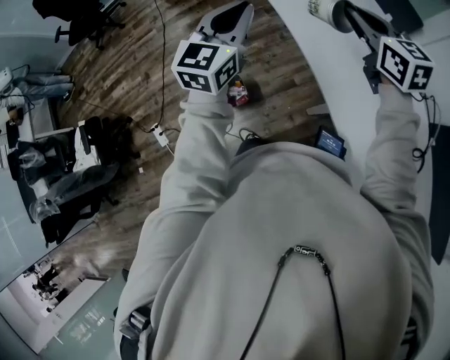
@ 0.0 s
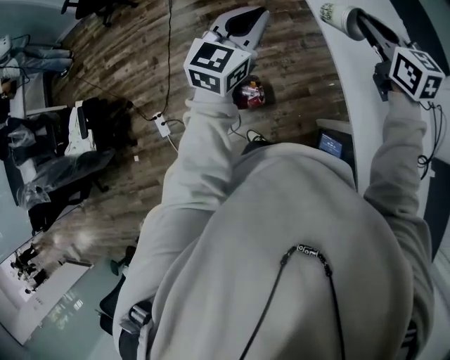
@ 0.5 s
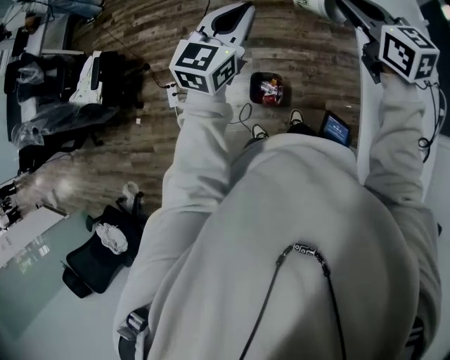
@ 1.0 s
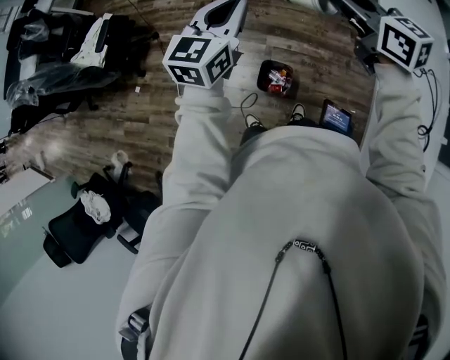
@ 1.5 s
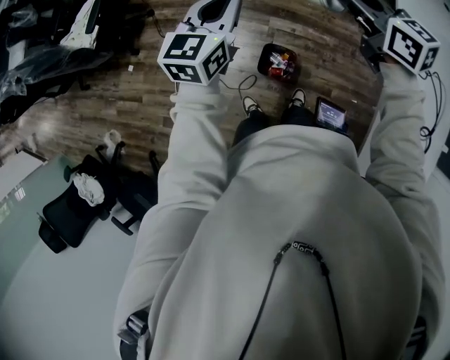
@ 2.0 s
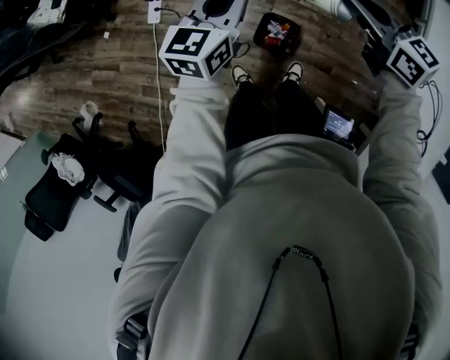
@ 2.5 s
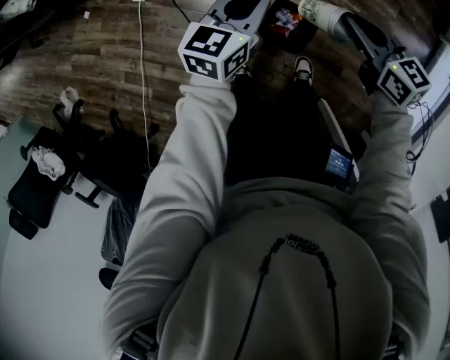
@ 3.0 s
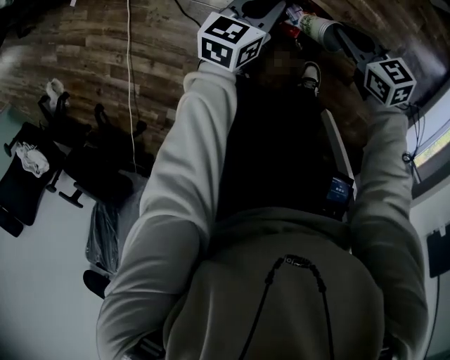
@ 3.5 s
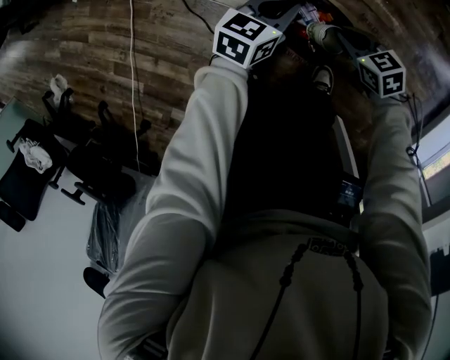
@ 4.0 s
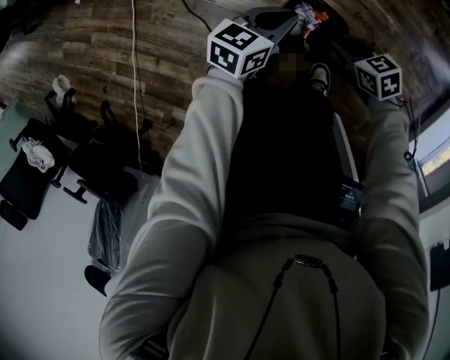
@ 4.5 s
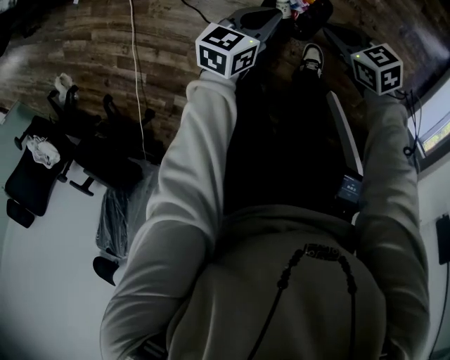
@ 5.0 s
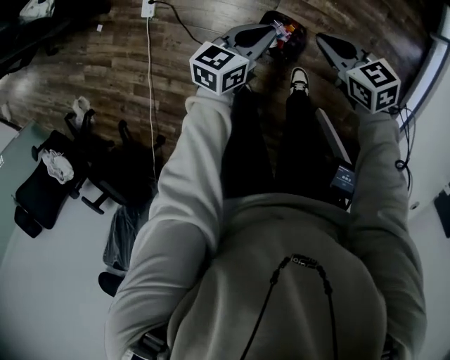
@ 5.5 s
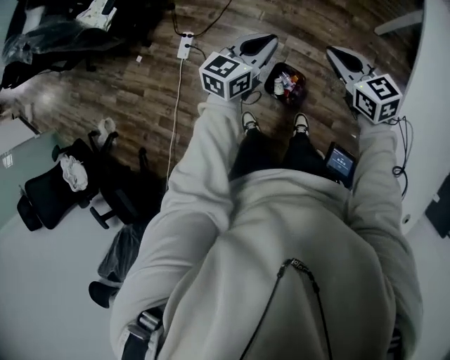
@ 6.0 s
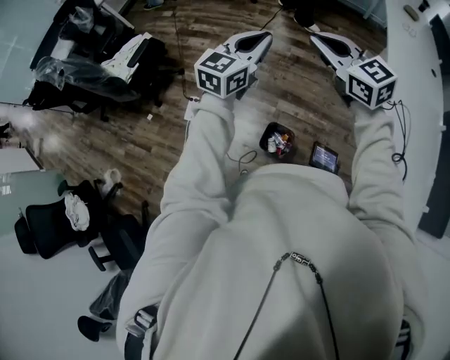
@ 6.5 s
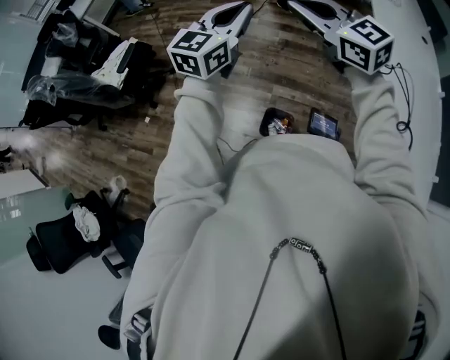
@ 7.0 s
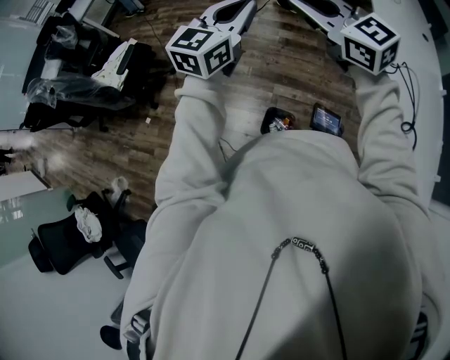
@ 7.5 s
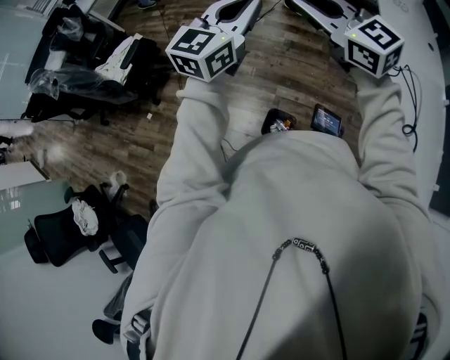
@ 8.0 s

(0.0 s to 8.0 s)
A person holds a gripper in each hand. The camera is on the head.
0.0 s - 2.0 s: The right gripper shifts by approximately 50 cm, and turns by about 50 degrees. The left gripper shifts by about 40 cm, and swivels approximately 40 degrees.
2.0 s - 4.0 s: The grippers both shift downward by roughly 70 cm. The left gripper rotates about 30 degrees, while the right gripper tips its fingers downward by roughly 30 degrees.
4.0 s - 6.0 s: Both grippers move upward, about 50 cm. The right gripper turns by about 30 degrees.
6.0 s - 8.0 s: The grippers both shift upward by some 30 cm. The right gripper changes its angle by approximately 30 degrees. The left gripper changes its angle by approximately 30 degrees.

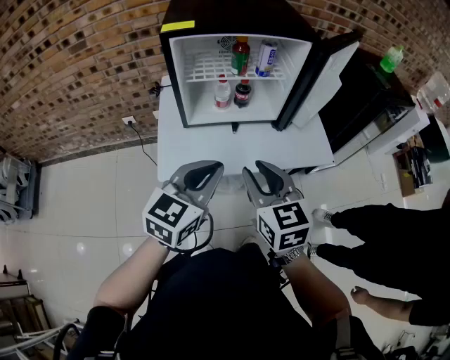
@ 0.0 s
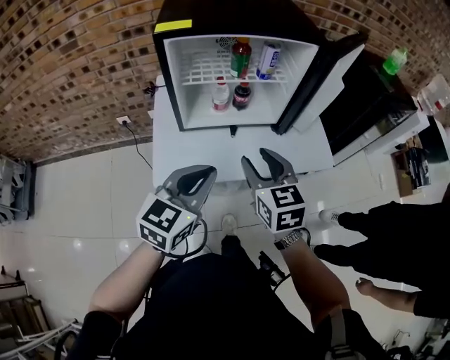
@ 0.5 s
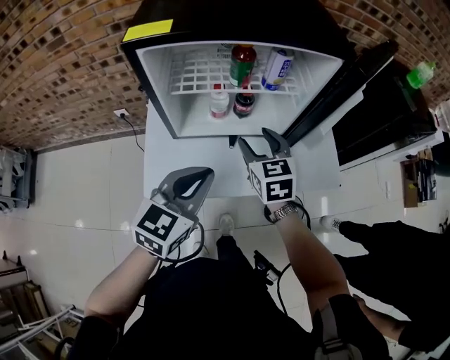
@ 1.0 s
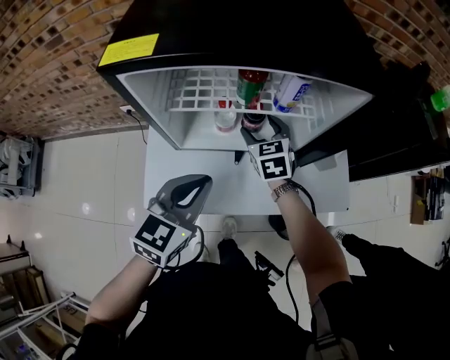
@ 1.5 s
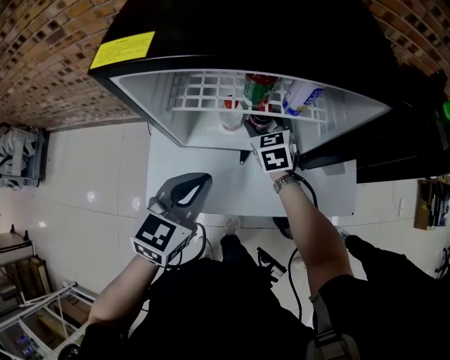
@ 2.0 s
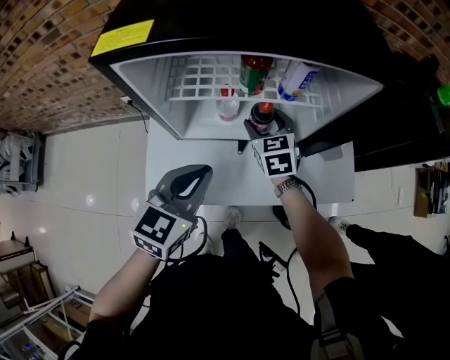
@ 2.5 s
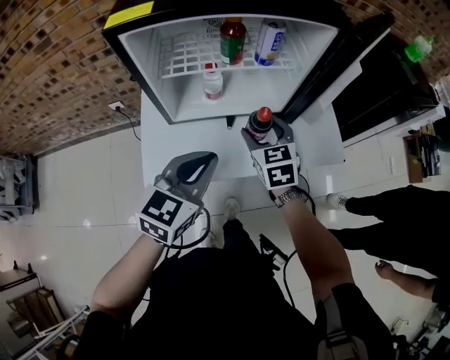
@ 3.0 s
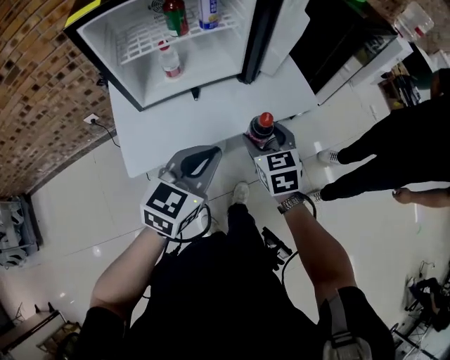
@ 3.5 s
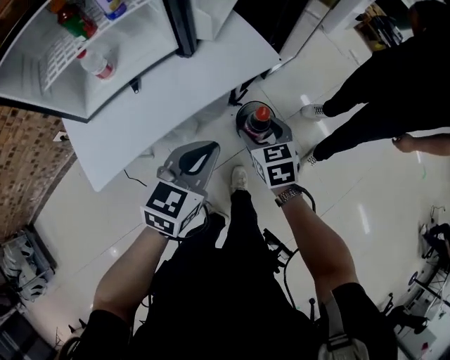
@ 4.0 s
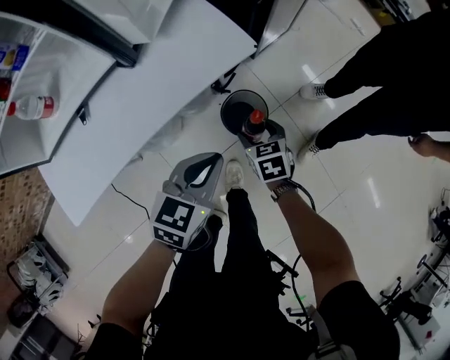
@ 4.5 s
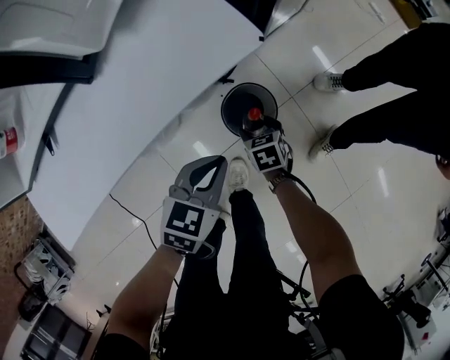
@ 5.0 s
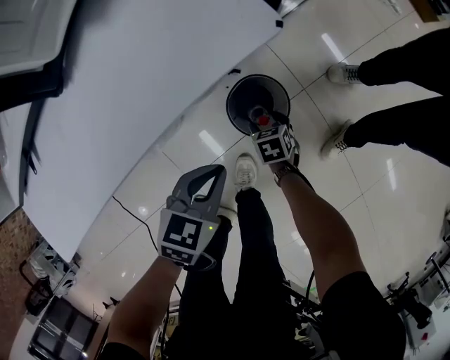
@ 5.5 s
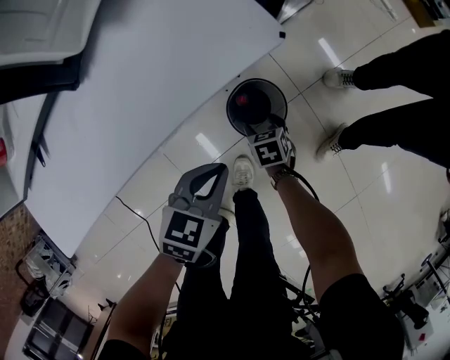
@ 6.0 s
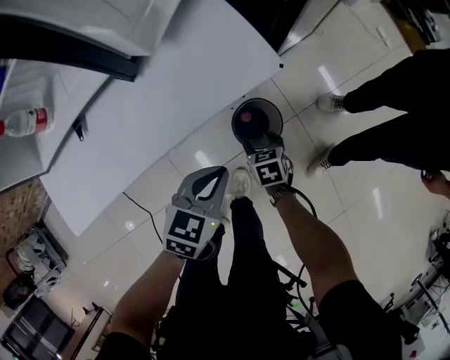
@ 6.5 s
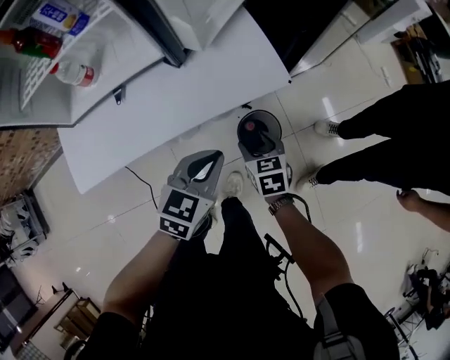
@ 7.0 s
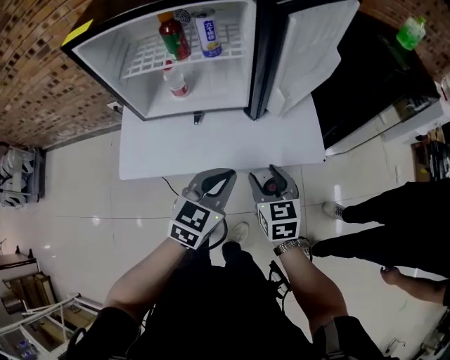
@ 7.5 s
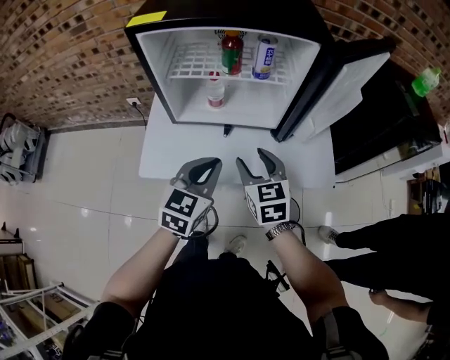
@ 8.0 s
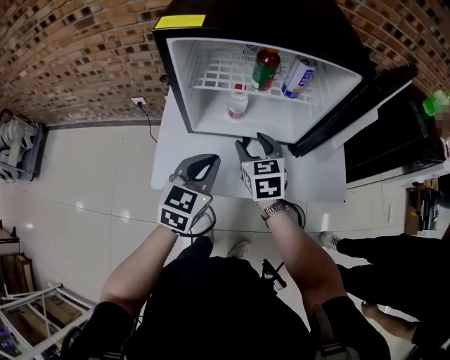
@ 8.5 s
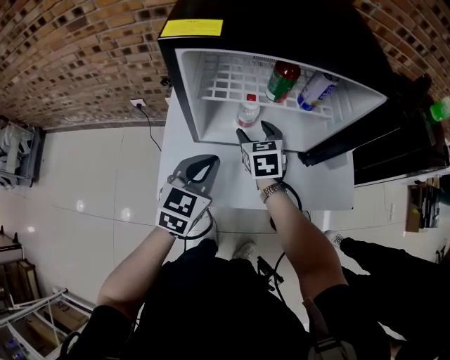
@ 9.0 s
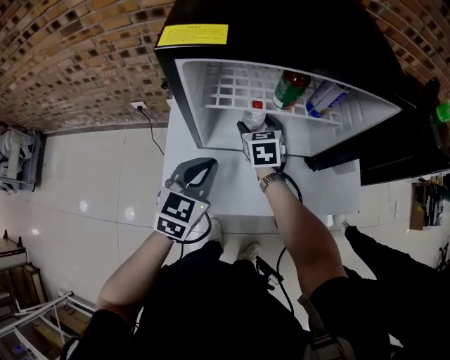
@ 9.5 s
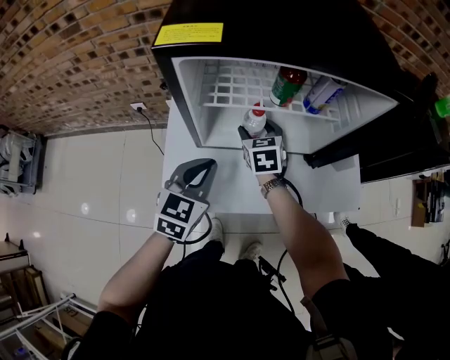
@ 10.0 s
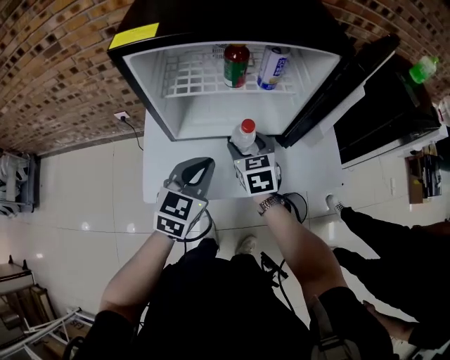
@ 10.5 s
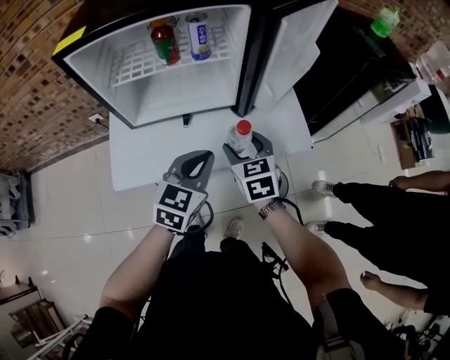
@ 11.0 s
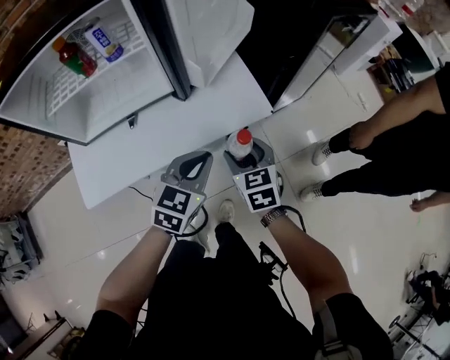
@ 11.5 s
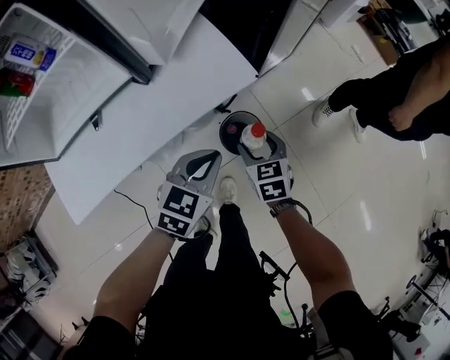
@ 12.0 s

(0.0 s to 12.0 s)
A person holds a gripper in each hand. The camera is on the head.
0.0 s - 2.0 s: The left gripper travels forward by roughly 20 cm. Meanwhile the right gripper travels forward and downward by approximately 40 cm, and opens up.
2.0 s - 4.0 s: The right gripper ends up some 50 cm from where it was, and swivels about 40 degrees; the left gripper changes place by approximately 30 cm, and swivels roughly 40 degrees.
4.0 s - 6.0 s: The right gripper is displaced downward by roughly 40 cm, and rotates about 30 degrees, while the left gripper moves downward and forward, roughly 30 cm, and swivels about 20 degrees.
6.0 s - 8.0 s: The right gripper moves upward, roughly 50 cm, and points its fingers some 40 degrees further upward. The left gripper moves upward, some 35 cm, and turns by some 50 degrees.
8.0 s - 10.0 s: The left gripper shifts about 20 cm to the left and forward, while the right gripper shifts some 25 cm forward and to the left.
10.0 s - 12.0 s: The two grippers travel together, approximately 50 cm. The right gripper rotates roughly 30 degrees. The left gripper changes its angle by roughly 40 degrees.

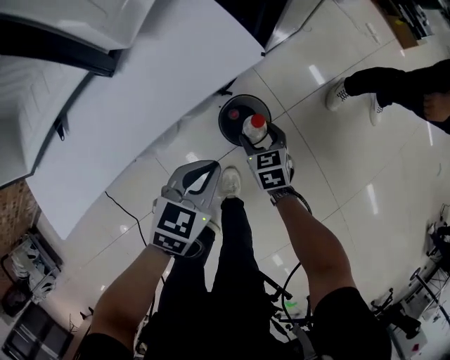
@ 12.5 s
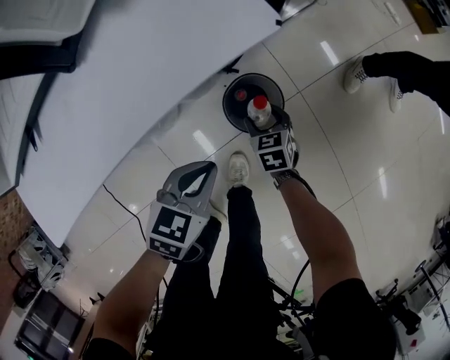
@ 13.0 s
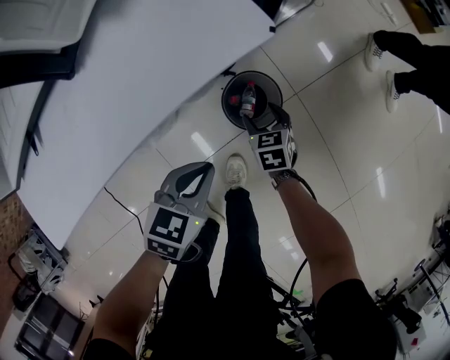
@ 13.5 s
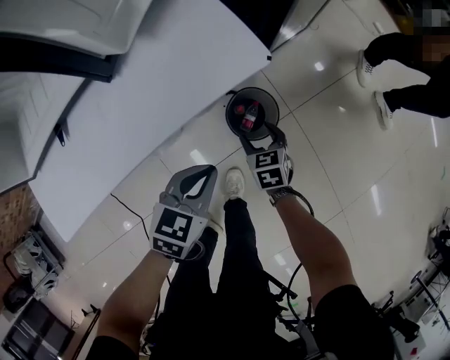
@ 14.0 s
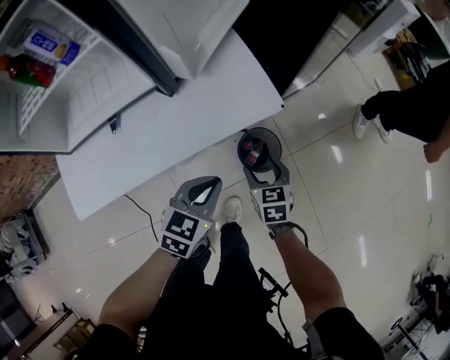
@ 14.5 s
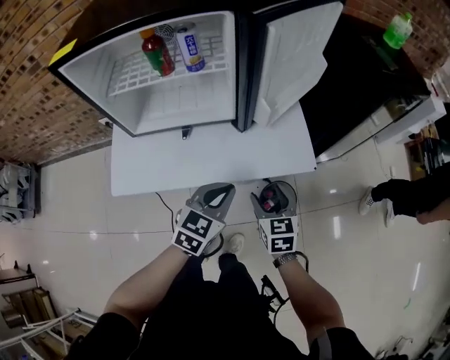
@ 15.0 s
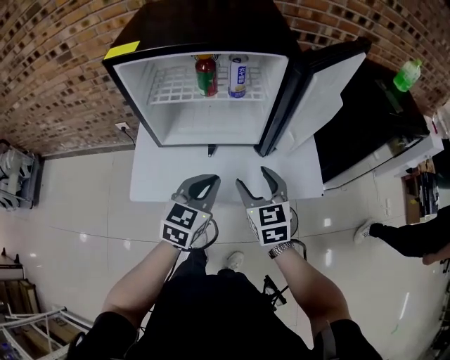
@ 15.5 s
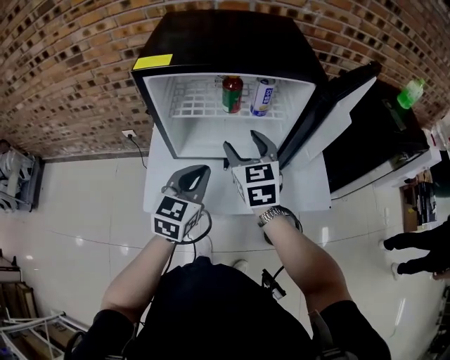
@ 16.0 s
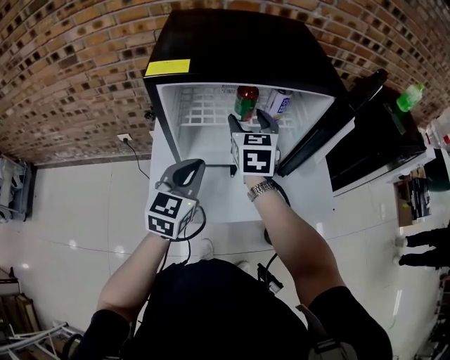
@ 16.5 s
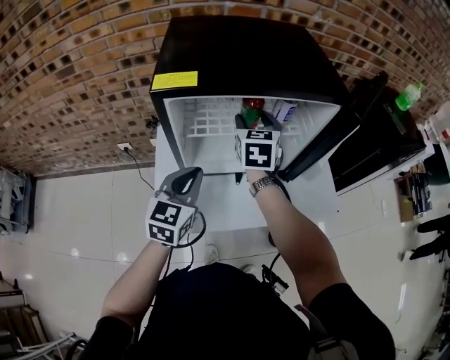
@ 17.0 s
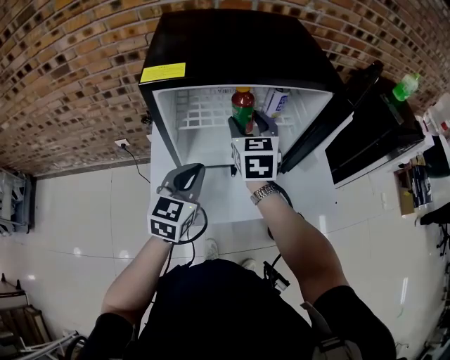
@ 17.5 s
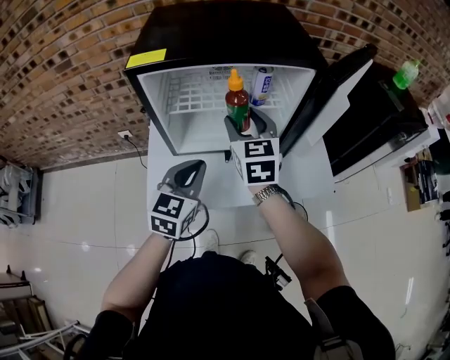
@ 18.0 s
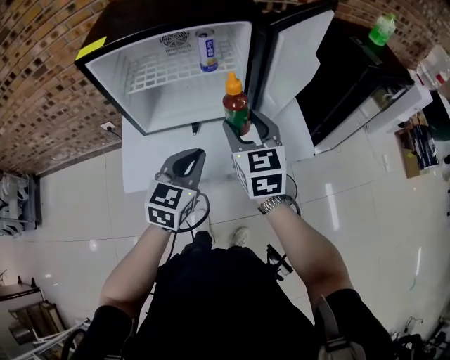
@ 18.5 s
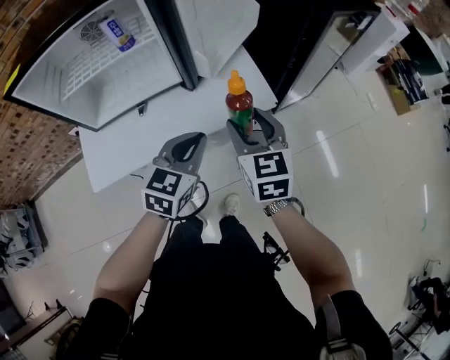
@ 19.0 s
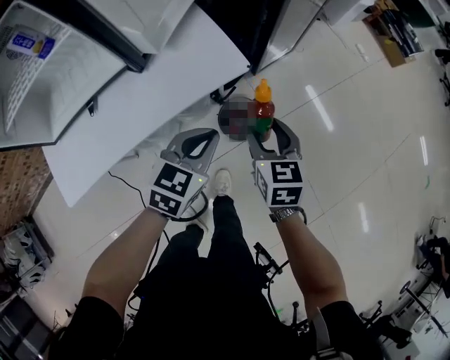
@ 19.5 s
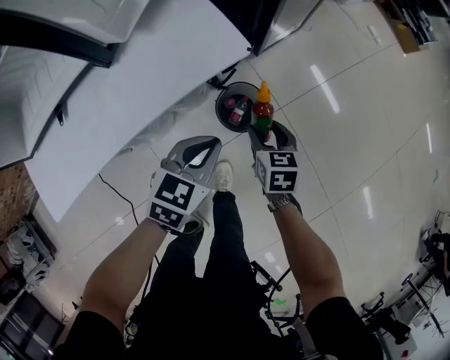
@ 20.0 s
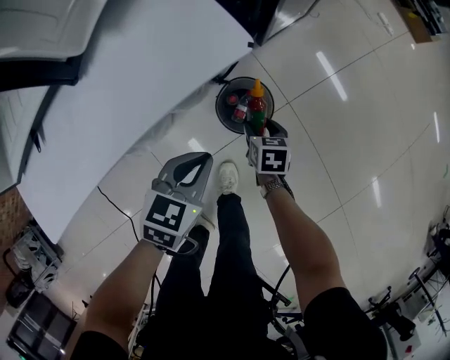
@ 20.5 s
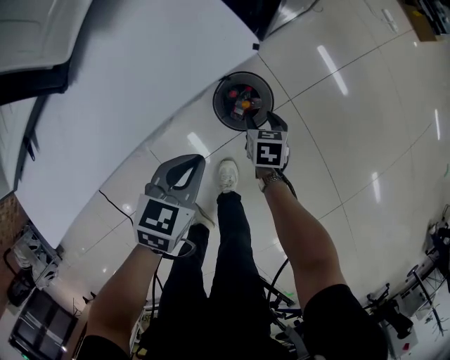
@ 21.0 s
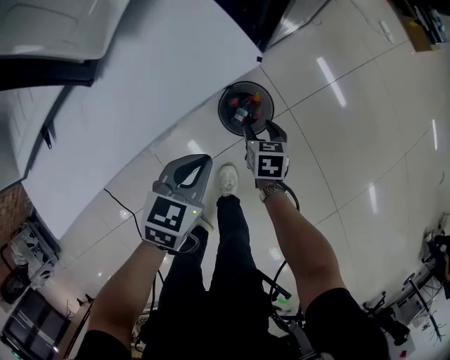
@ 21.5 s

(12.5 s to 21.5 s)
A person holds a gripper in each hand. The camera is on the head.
12.5 s - 14.5 s: The right gripper travels upward by some 10 cm. The left gripper goes roughly 10 cm upward.
14.5 s - 17.0 s: The pair of grippers is taken approximately 50 cm. The right gripper rotates roughly 30 degrees. The left gripper rotates some 40 degrees.
17.0 s - 19.5 s: Both grippers are carried about 50 cm. The left gripper swivels about 40 degrees, while the right gripper changes its angle by approximately 30 degrees.
19.5 s - 21.5 s: The right gripper travels downward by approximately 30 cm, and swivels roughly 20 degrees, while the left gripper is displaced downward by roughly 15 cm.
